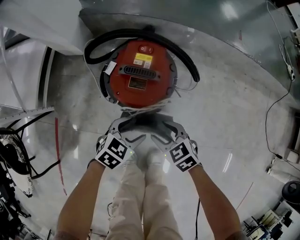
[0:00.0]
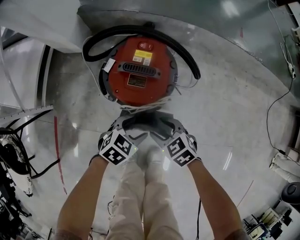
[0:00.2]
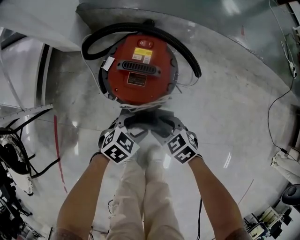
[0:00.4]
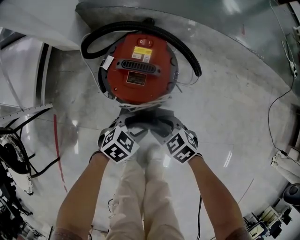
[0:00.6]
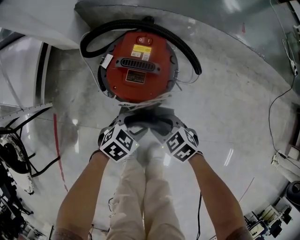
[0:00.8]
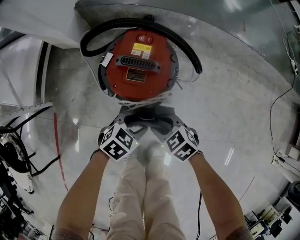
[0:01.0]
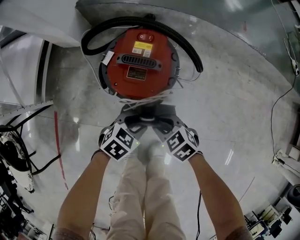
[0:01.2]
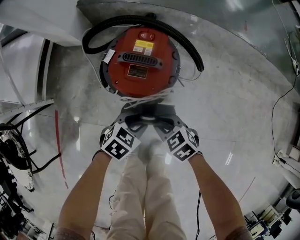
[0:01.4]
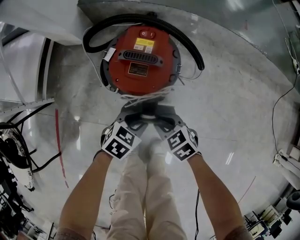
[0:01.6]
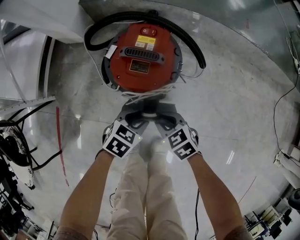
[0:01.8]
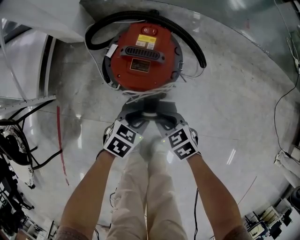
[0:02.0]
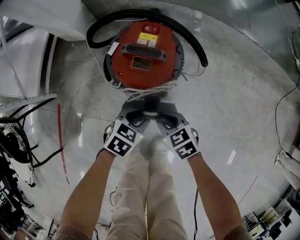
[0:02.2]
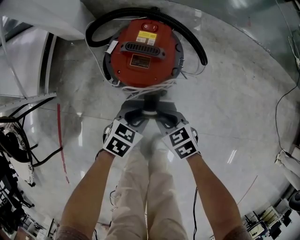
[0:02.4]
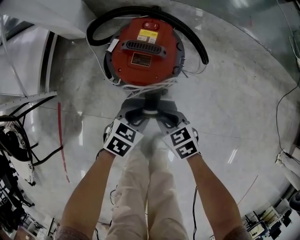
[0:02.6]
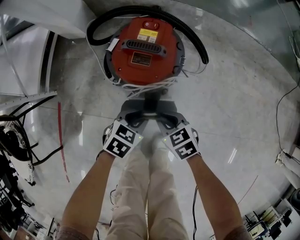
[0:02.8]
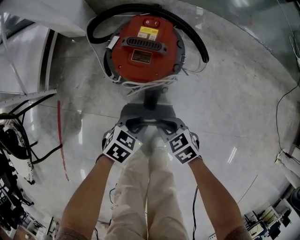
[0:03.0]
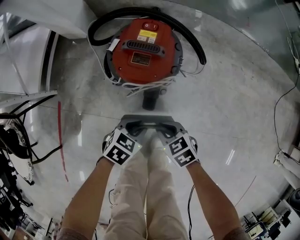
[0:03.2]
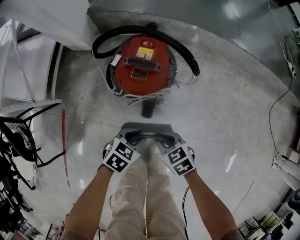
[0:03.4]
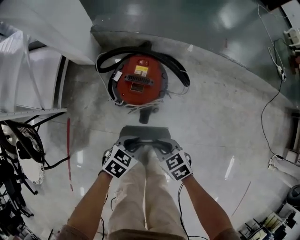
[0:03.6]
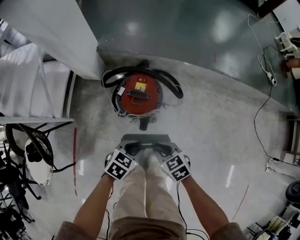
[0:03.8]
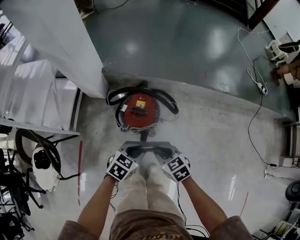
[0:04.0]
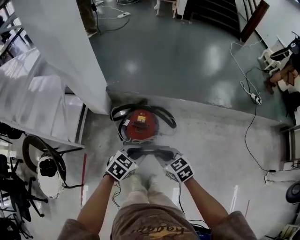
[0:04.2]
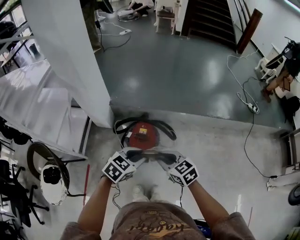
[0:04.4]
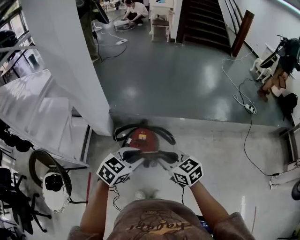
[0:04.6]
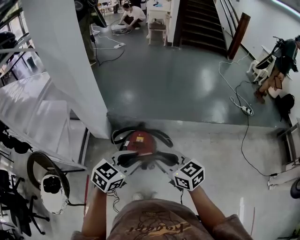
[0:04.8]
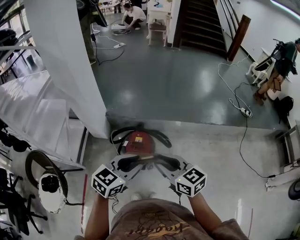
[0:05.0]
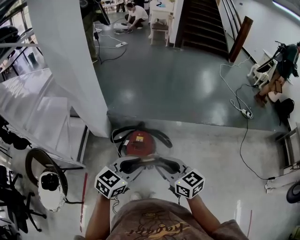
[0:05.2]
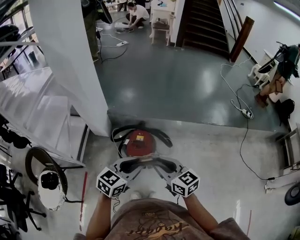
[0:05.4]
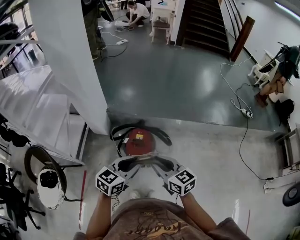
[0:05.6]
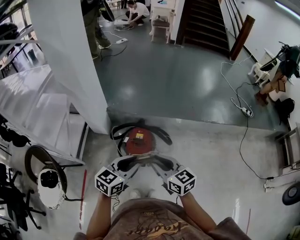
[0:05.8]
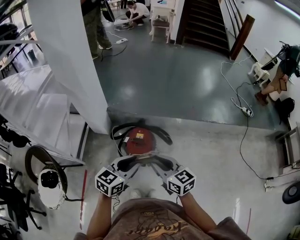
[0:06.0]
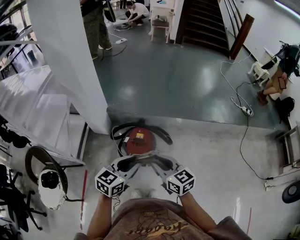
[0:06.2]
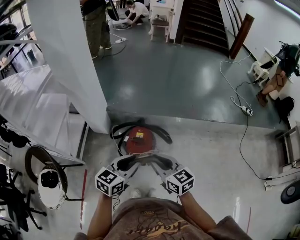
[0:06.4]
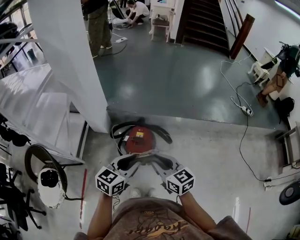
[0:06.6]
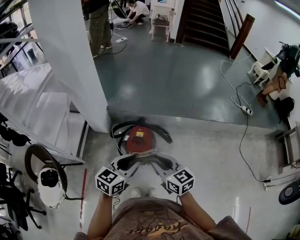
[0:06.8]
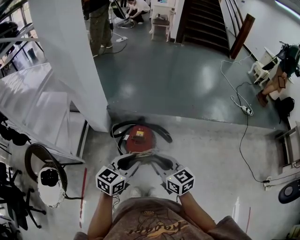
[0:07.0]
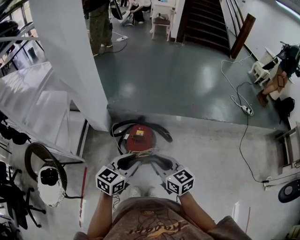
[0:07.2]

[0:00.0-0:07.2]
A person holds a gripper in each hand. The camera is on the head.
0:00.0 to 0:01.4: The right gripper closes up. The left gripper closes its fingers.
0:01.4 to 0:02.8: There are only small adjustments of the grippers.
0:02.8 to 0:04.4: The two grippers go approximately 50 cm upward. The left gripper rotates about 20 degrees, while the right gripper changes its angle by some 20 degrees.
0:04.4 to 0:05.8: The right gripper moves upward, approximately 5 cm, and rotates about 20 degrees, while the left gripper turns by about 20 degrees.
0:05.8 to 0:07.2: The grippers stay close to where they were, moving slightly.

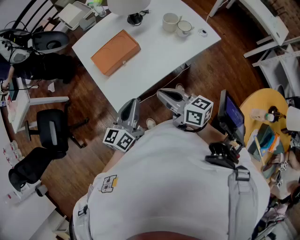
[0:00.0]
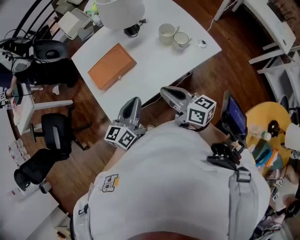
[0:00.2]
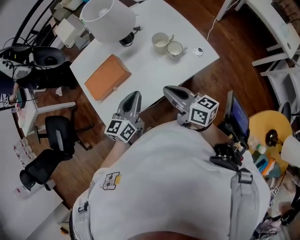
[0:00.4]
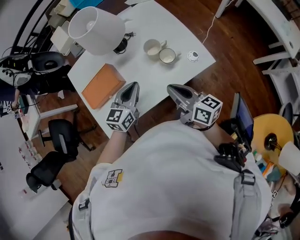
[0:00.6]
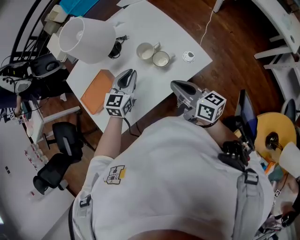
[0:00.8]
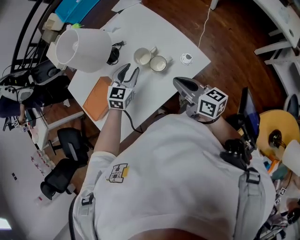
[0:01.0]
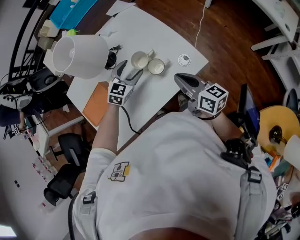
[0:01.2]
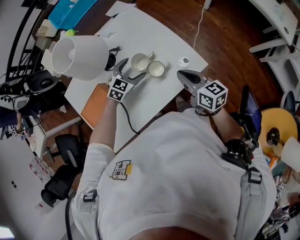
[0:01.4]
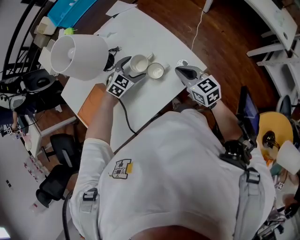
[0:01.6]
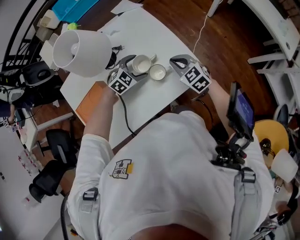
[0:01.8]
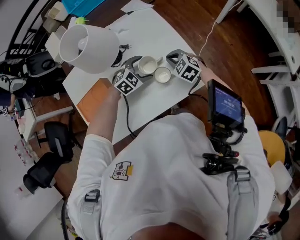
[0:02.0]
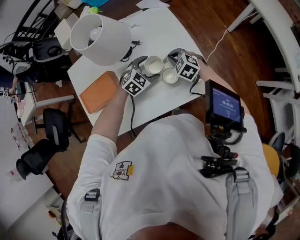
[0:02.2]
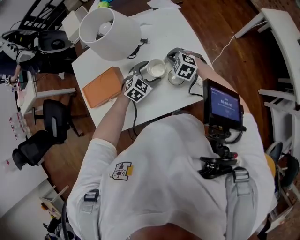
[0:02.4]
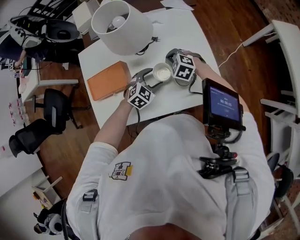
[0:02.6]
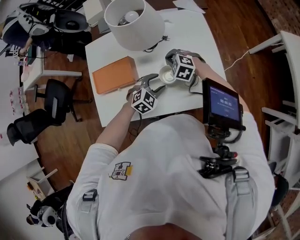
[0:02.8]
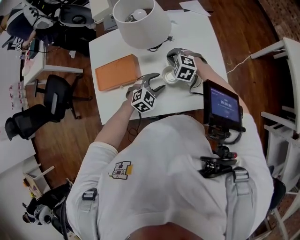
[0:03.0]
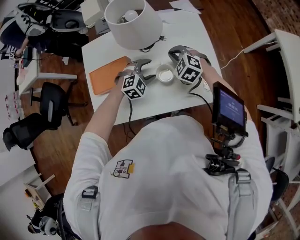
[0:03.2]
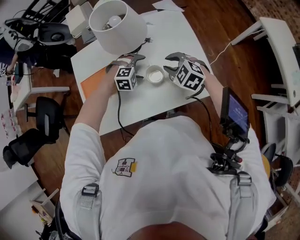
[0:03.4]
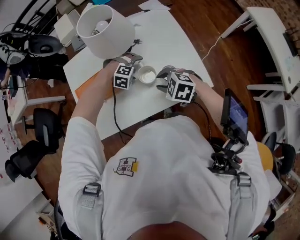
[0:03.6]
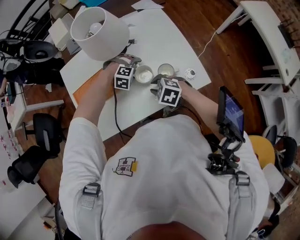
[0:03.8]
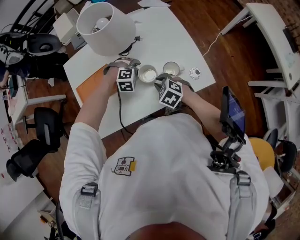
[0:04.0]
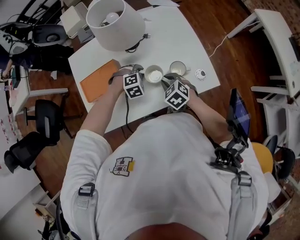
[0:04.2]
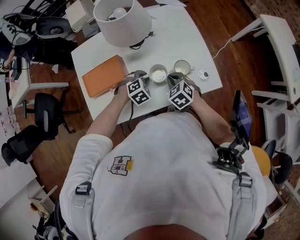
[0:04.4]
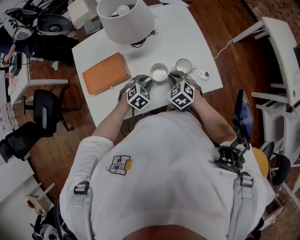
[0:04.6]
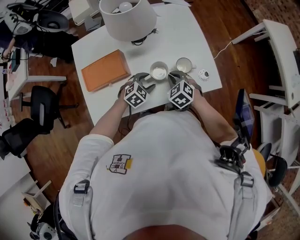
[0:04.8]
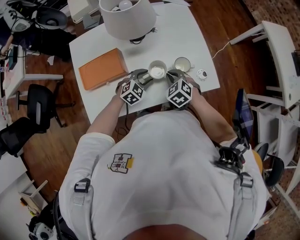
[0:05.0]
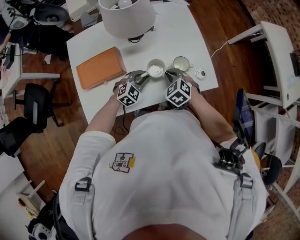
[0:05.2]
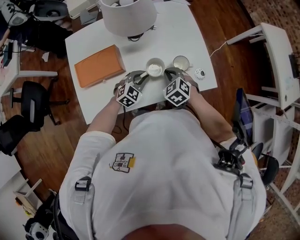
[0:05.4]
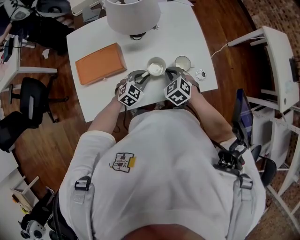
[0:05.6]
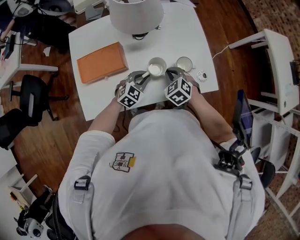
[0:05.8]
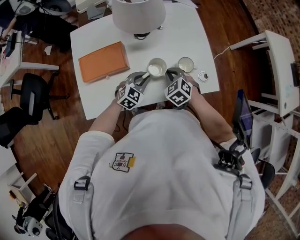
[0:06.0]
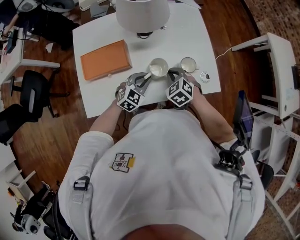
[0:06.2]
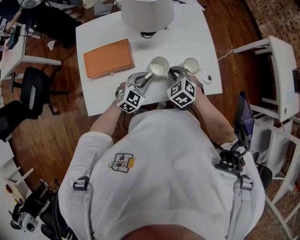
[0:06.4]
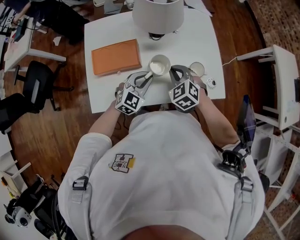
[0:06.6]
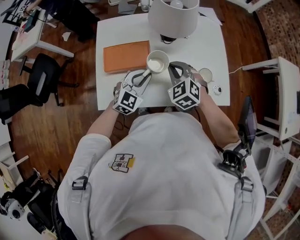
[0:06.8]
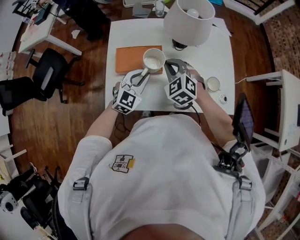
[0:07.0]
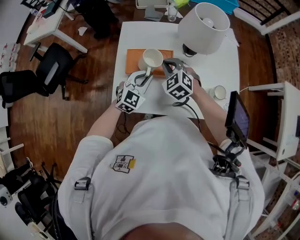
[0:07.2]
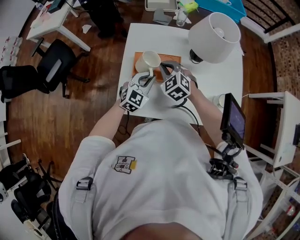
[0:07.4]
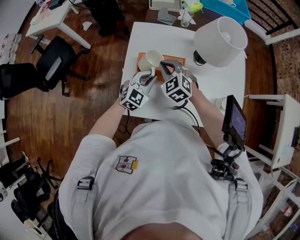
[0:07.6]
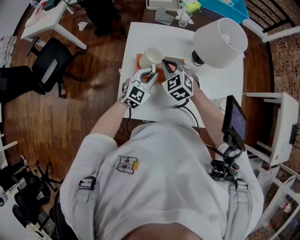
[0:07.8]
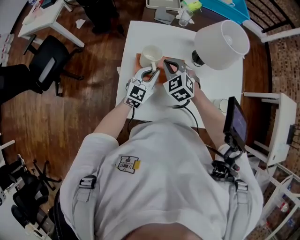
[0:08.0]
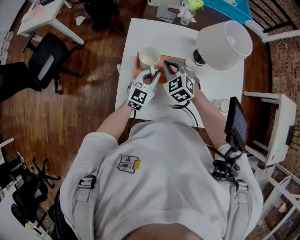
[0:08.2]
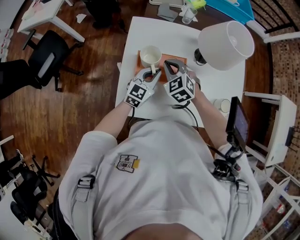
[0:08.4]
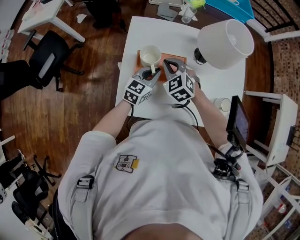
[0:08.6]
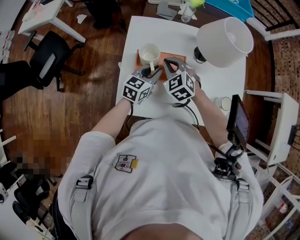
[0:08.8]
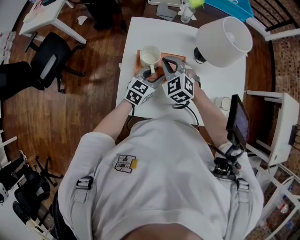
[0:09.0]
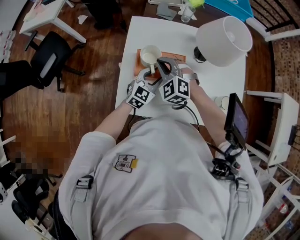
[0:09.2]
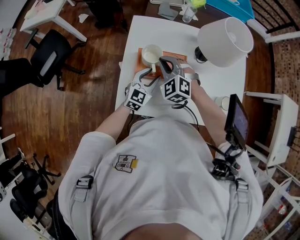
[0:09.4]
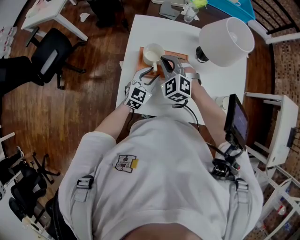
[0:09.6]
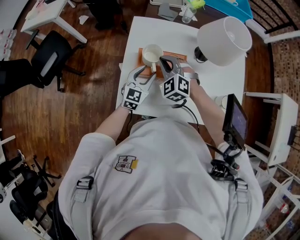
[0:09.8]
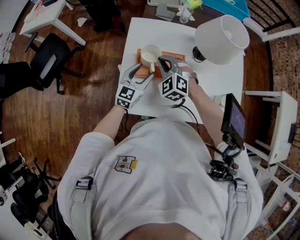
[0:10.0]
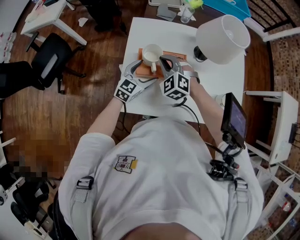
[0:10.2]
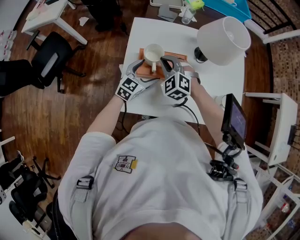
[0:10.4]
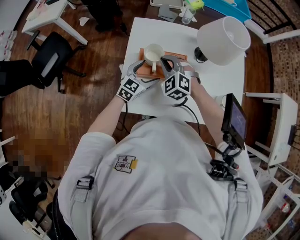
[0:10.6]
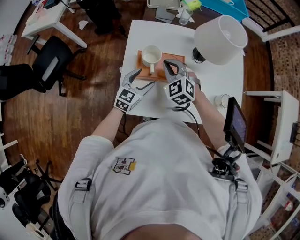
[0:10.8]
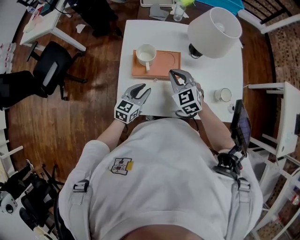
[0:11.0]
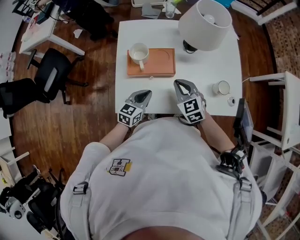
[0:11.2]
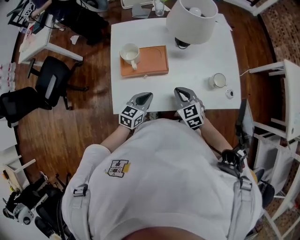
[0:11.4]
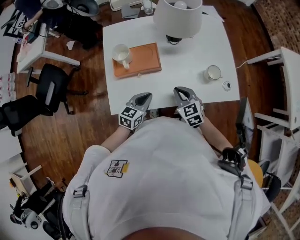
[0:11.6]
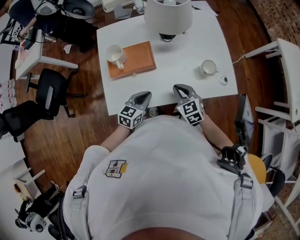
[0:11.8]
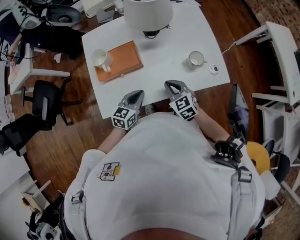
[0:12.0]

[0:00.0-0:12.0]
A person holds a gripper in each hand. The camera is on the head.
0:00.0 to 0:01.6: The pair of grippers is taken forward and to the right, about 50 cm. The left gripper tilts its fingers some 40 degrees downward, and opens up. The right gripper changes its angle by about 30 degrees.
0:01.6 to 0:03.0: The right gripper changes place by some 25 cm, and rolls counterclockwise, seen from behind, by approximately 70 degrees; the left gripper ends up about 10 cm from where it was, turns by about 20 degrees, and closes its fingers.
0:03.0 to 0:04.4: The left gripper closes. The right gripper heads backward and to the right, covering approximately 15 cm, and rotates about 40 degrees.
0:04.4 to 0:06.0: The left gripper swivels about 30 degrees.
0:06.0 to 0:07.6: The right gripper goes approximately 30 cm to the left, and changes its angle by some 30 degrees. Meanwhile the left gripper goes some 25 cm to the left and upward, and swivels roughly 20 degrees.
0:07.6 to 0:09.0: The left gripper changes its angle by about 30 degrees.
0:09.0 to 0:10.4: The left gripper opens up.
0:10.4 to 0:12.0: The two grippers go approximately 25 cm to the right and backward. The left gripper closes; the right gripper twists approximately 50 degrees clockwise, seen from behind.

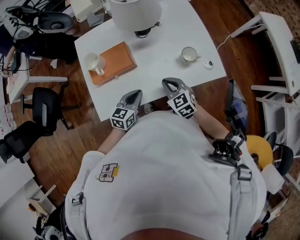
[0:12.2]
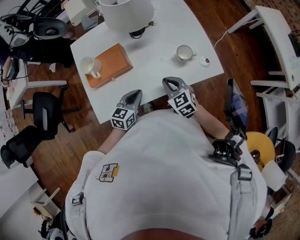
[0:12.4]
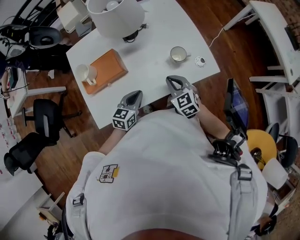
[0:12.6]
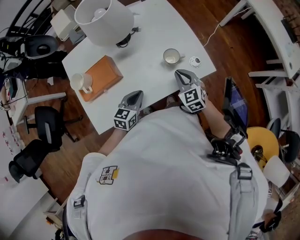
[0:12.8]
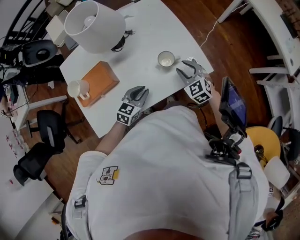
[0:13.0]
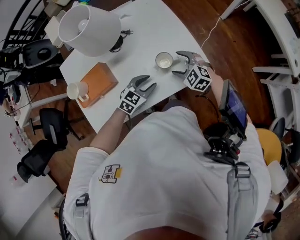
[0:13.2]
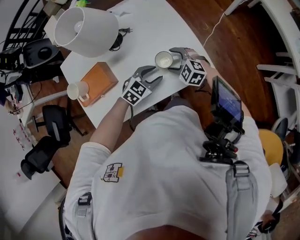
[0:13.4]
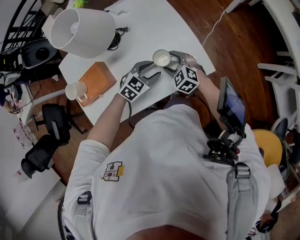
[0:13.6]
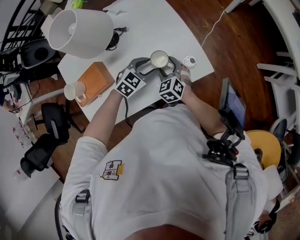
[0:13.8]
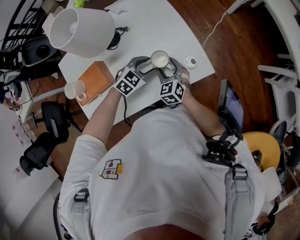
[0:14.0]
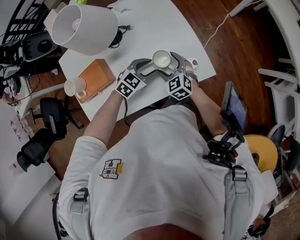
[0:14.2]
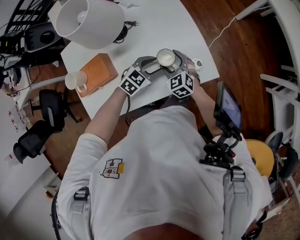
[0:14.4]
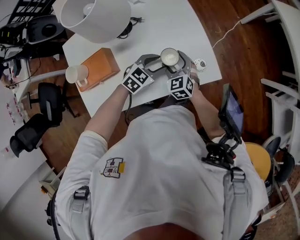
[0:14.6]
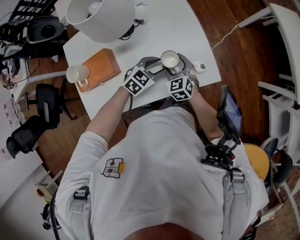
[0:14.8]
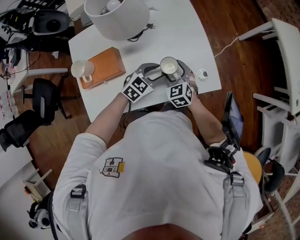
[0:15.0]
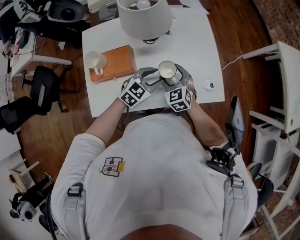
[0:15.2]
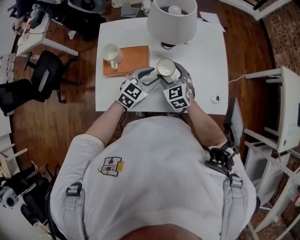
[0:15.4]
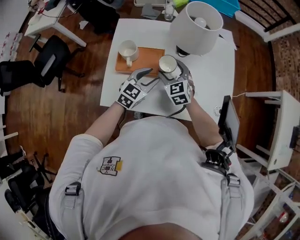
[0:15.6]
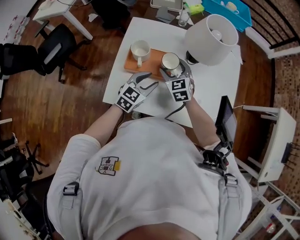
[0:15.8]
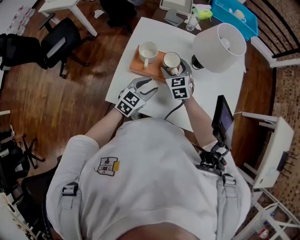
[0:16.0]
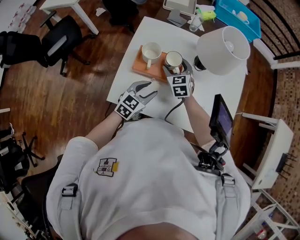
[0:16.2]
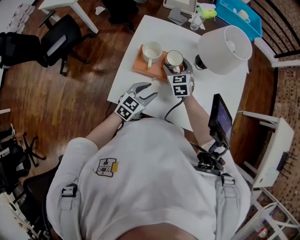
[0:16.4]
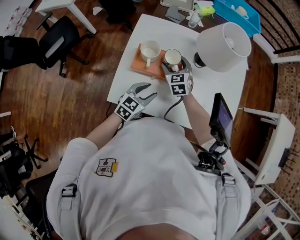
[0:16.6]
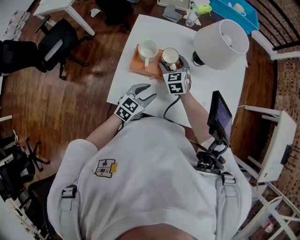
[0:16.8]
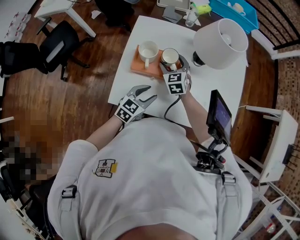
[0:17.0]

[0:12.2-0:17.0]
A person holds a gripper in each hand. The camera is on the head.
0:12.2 to 0:13.8: The left gripper ends up roughly 25 cm from where it was, swivels roughly 50 degrees, and opens. The right gripper changes place by roughly 20 cm, turns by roughly 20 degrees, and opens its fingers.
0:13.8 to 0:15.4: The left gripper ends up some 20 cm from where it was, and changes its angle by approximately 40 degrees, while the right gripper changes place by some 20 cm, and rotates about 30 degrees.
0:15.4 to 0:17.0: The left gripper goes approximately 15 cm to the left and backward; the right gripper is displaced to the left and forward by roughly 20 cm.
